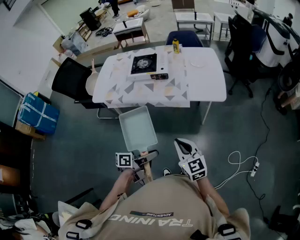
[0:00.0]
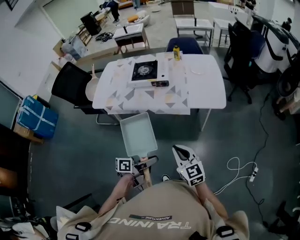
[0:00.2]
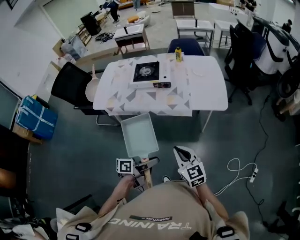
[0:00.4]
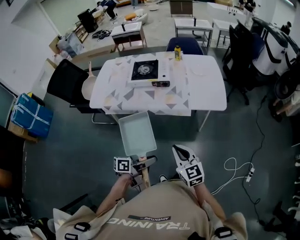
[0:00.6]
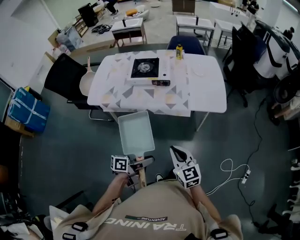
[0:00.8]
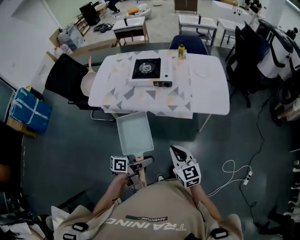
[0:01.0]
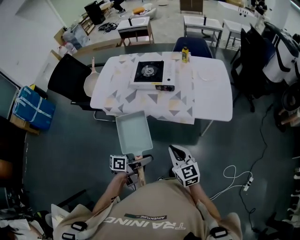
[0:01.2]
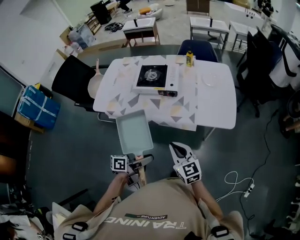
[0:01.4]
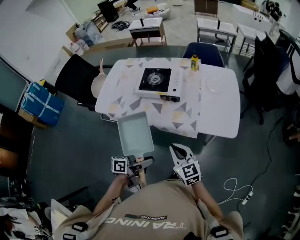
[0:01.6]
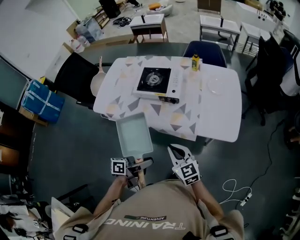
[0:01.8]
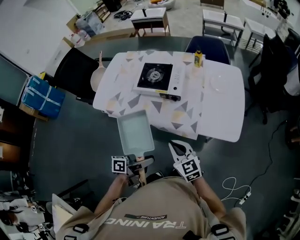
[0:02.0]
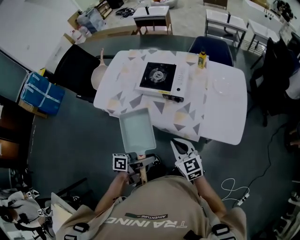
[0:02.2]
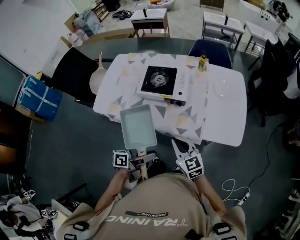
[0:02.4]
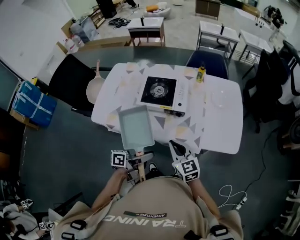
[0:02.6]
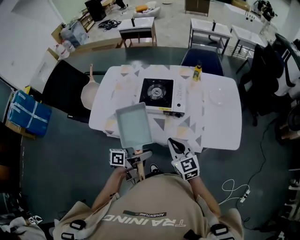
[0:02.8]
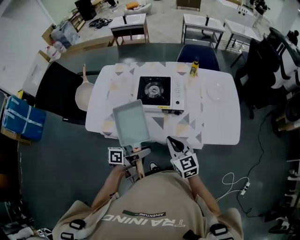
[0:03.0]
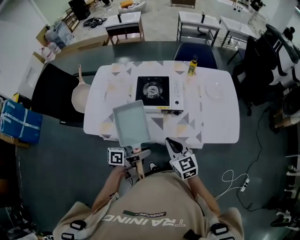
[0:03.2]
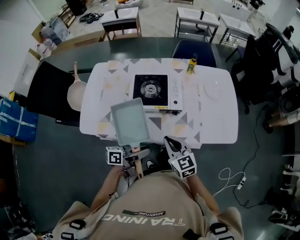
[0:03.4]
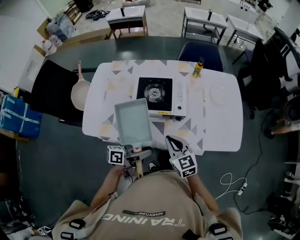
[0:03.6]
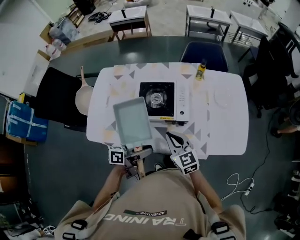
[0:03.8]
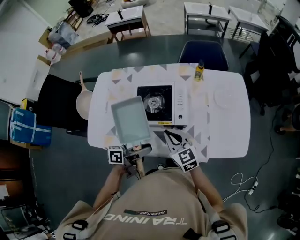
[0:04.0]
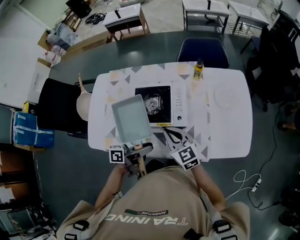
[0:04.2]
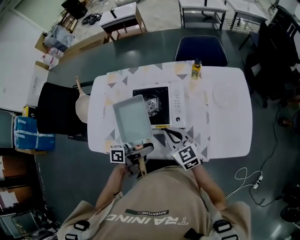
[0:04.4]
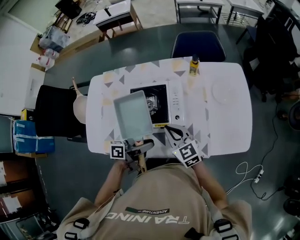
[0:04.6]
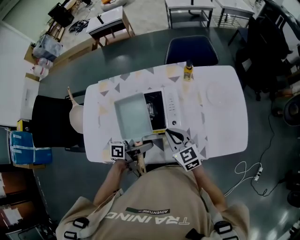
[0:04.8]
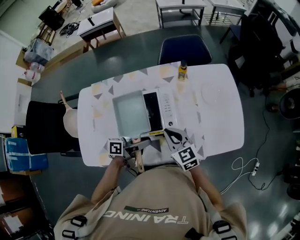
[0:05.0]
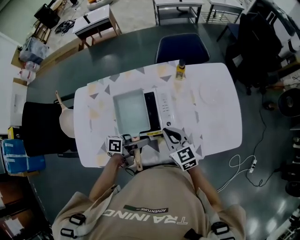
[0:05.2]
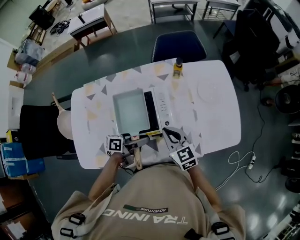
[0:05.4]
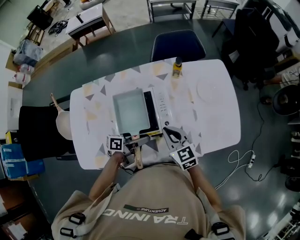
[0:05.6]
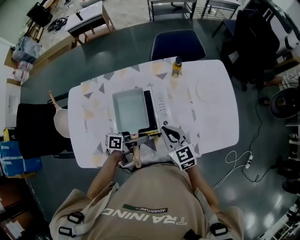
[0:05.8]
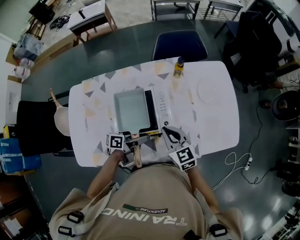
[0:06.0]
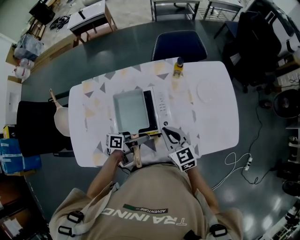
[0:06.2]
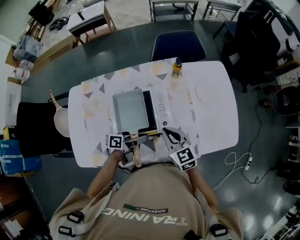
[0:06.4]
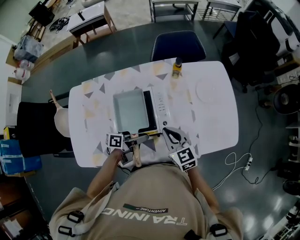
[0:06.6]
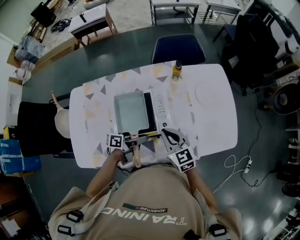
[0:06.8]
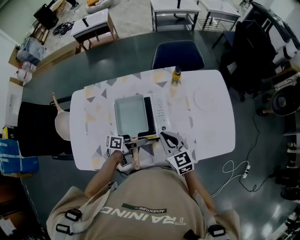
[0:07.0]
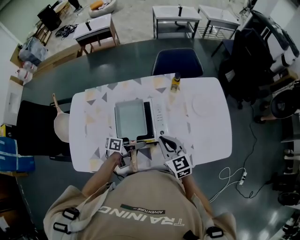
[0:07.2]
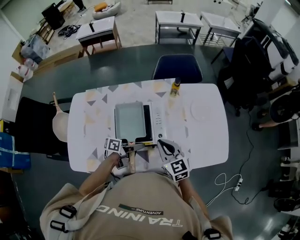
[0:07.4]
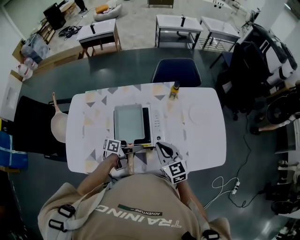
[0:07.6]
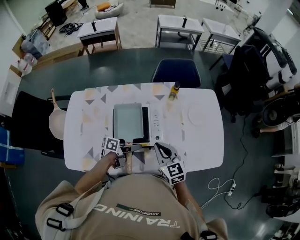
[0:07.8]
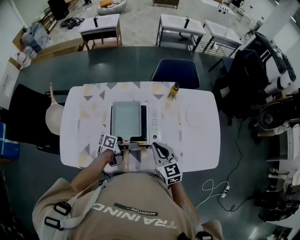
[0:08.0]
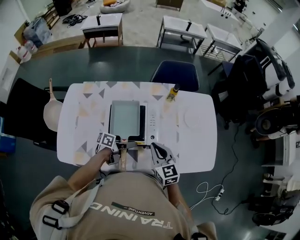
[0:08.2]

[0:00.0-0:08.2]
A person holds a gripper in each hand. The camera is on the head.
0:00.0 to 0:01.6: The right gripper moves about 20 cm.
0:01.6 to 0:03.2: The right gripper moves roughly 20 cm.
0:03.2 to 0:05.0: The right gripper moves approximately 20 cm.

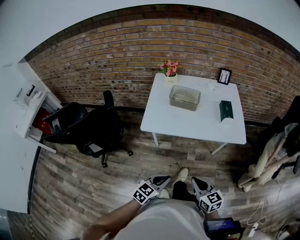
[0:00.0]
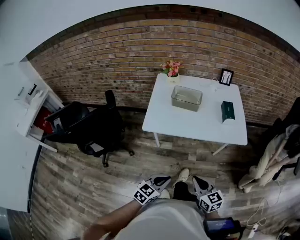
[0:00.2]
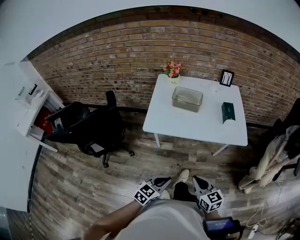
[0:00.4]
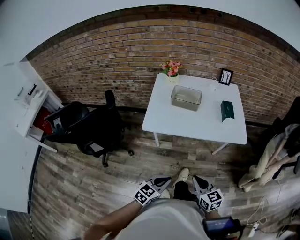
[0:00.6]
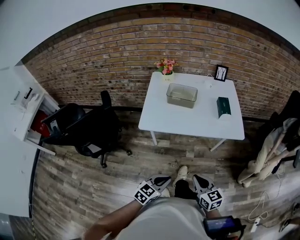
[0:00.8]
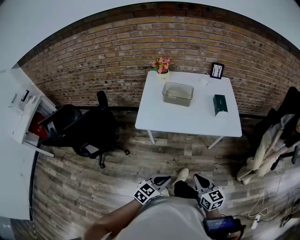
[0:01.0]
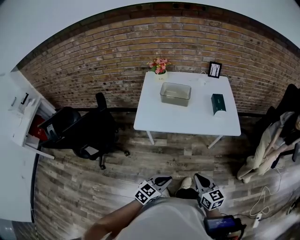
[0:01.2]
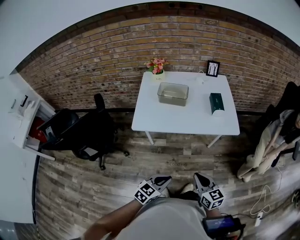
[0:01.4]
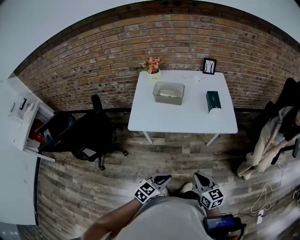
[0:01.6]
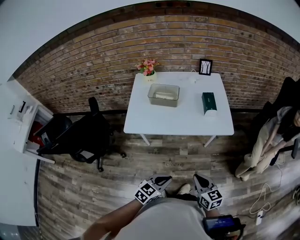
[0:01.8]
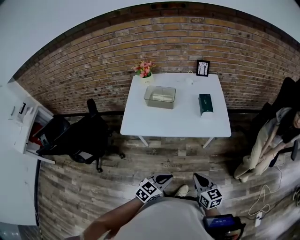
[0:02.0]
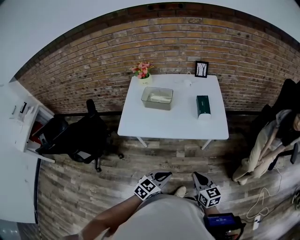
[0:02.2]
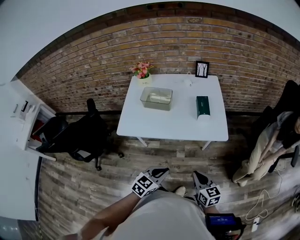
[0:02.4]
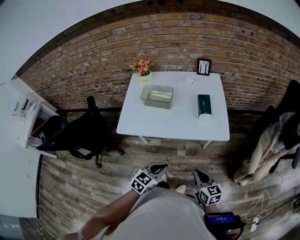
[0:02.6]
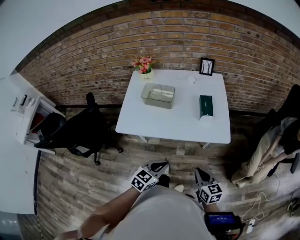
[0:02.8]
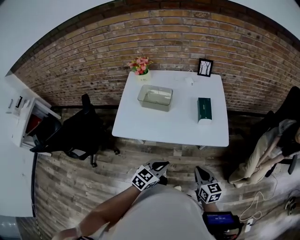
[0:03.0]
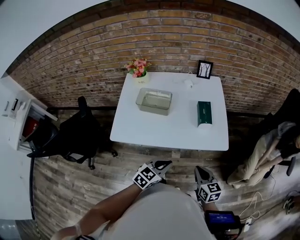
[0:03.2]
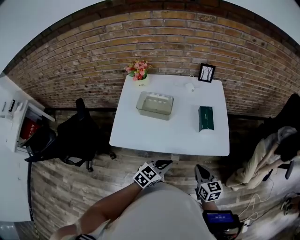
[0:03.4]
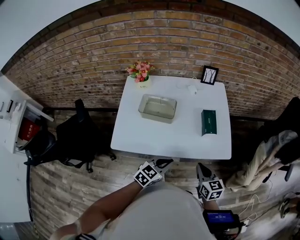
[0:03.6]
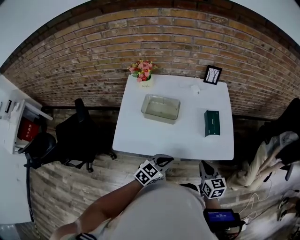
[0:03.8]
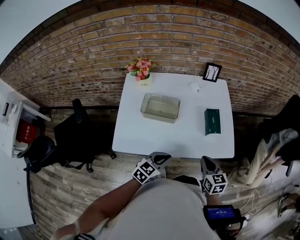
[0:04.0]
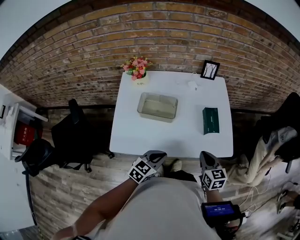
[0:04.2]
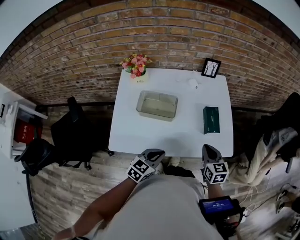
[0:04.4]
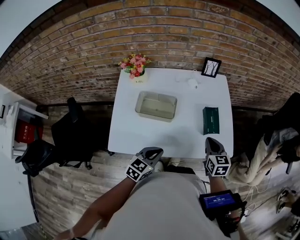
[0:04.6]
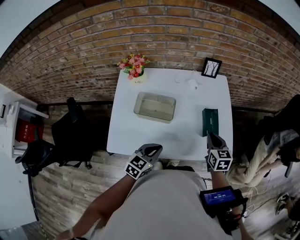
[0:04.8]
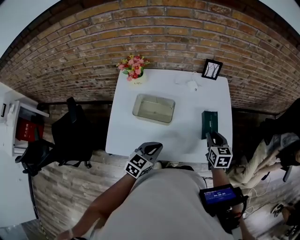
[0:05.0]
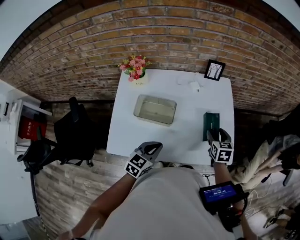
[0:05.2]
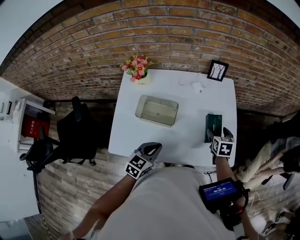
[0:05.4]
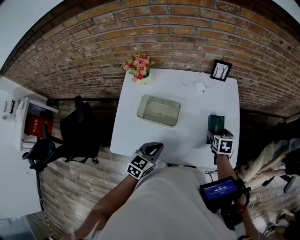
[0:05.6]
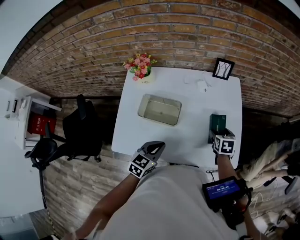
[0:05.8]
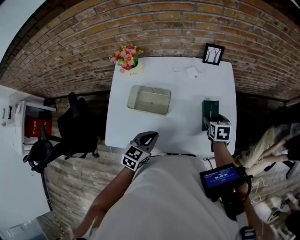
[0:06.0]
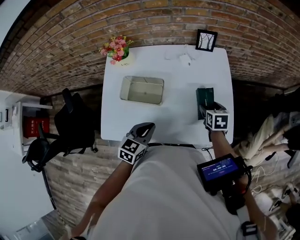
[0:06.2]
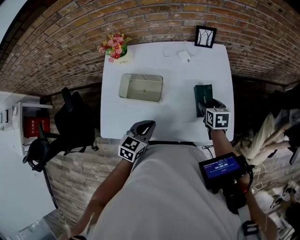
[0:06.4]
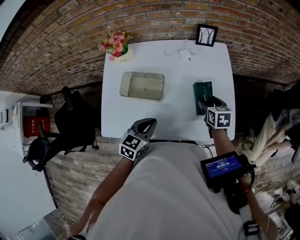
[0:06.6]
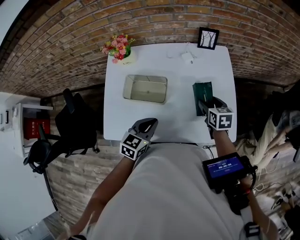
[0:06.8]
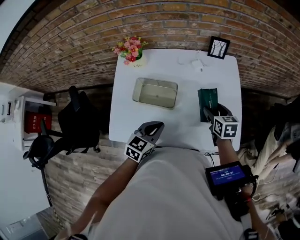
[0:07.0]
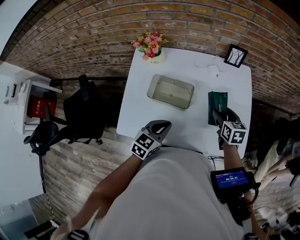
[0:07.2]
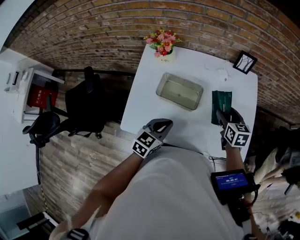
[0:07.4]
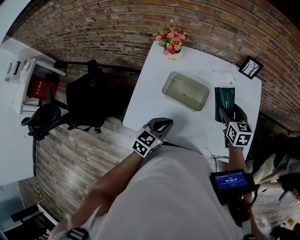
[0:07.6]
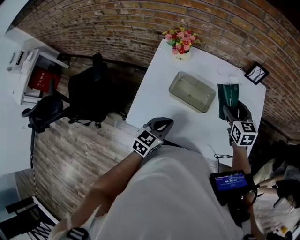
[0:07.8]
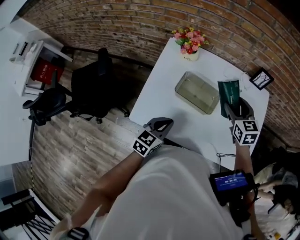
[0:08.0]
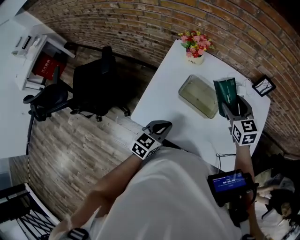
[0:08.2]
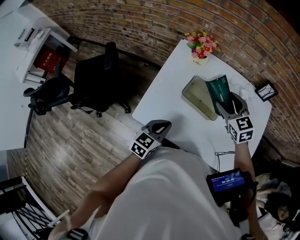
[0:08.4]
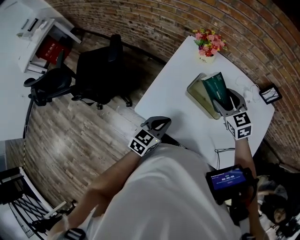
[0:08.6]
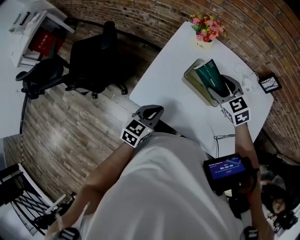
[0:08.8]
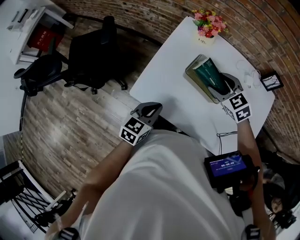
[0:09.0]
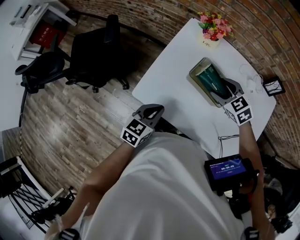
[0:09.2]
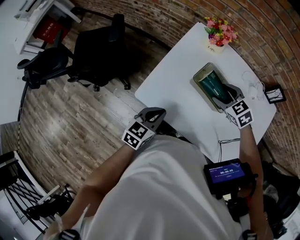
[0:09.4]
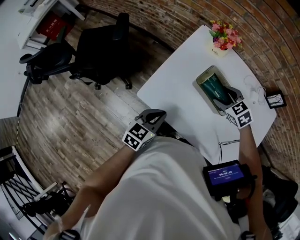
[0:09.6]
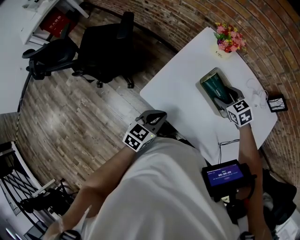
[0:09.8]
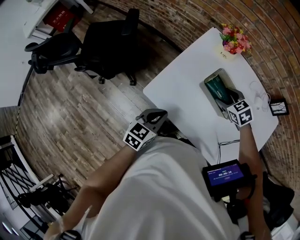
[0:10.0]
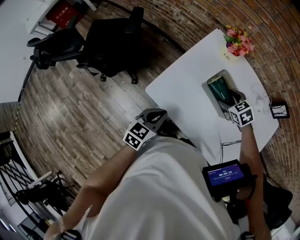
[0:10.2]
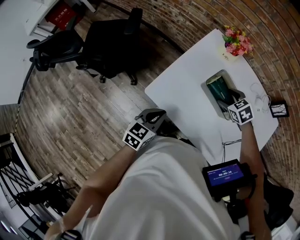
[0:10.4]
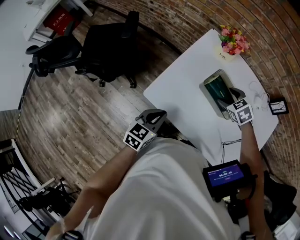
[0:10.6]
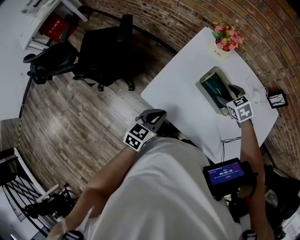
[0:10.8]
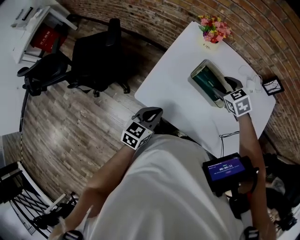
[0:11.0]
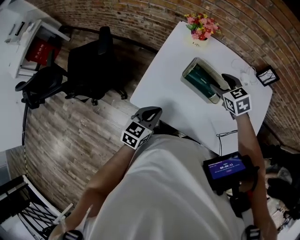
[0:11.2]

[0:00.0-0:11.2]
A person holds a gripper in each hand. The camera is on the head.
0:00.0 to 0:01.6: The two grippers go approximately 5 cm to the right.
0:01.6 to 0:03.2: The left gripper moves forward, some 20 cm, while the right gripper goes about 20 cm forward and to the right.
0:03.2 to 0:04.8: The left gripper heads to the left and forward, covering about 20 cm. The right gripper is displaced forward by some 25 cm.
0:04.8 to 0:06.4: The right gripper travels forward and downward by about 10 cm, and opens its fingers.
0:06.4 to 0:08.0: The right gripper goes some 20 cm to the left and upward, and turns by some 40 degrees; the left gripper goes approximately 15 cm to the left.
0:08.0 to 0:09.6: The left gripper moves approximately 10 cm, while the right gripper shifts by some 15 cm, and rotates approximately 50 degrees.
0:09.6 to 0:11.2: The right gripper changes its angle by approximately 20 degrees.

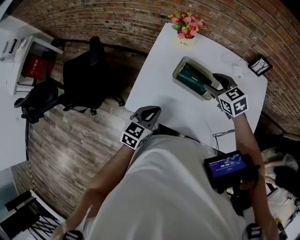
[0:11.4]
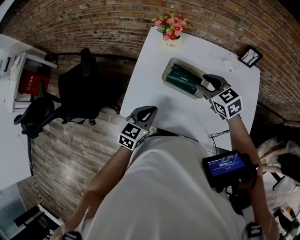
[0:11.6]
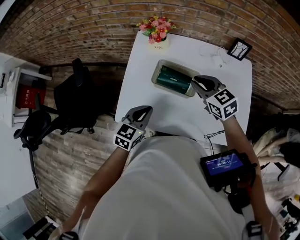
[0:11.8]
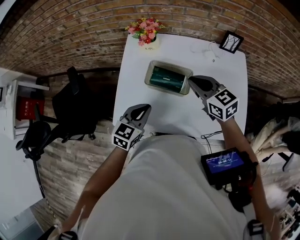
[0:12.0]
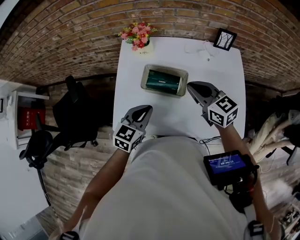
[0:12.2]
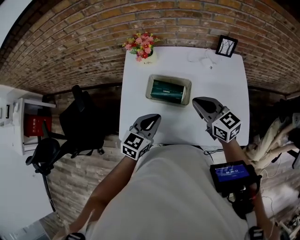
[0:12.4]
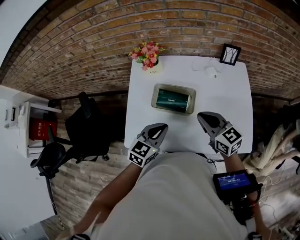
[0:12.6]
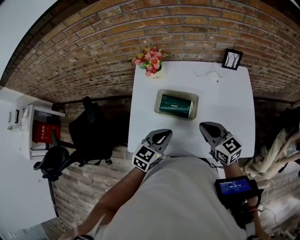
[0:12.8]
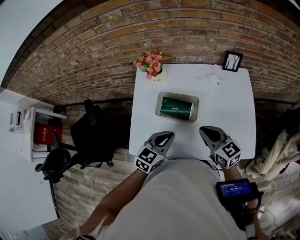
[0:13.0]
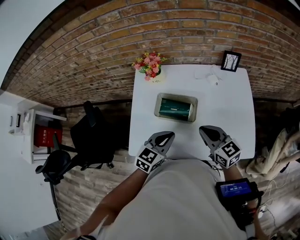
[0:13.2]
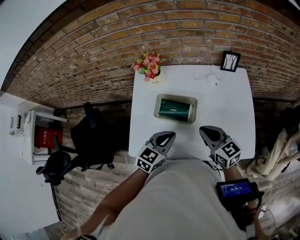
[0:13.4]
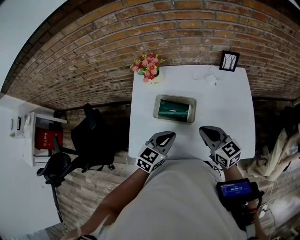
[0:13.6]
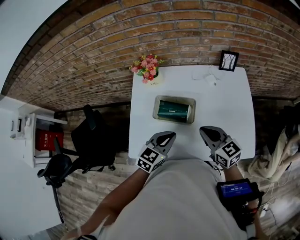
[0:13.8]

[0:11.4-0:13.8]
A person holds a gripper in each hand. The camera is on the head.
0:11.4 to 0:12.6: The left gripper heads to the right, covering some 10 cm; the right gripper moves backward and to the right, roughly 10 cm, changes its angle by about 30 degrees, and closes up.
0:12.6 to 0:13.8: The grippers move only a little.

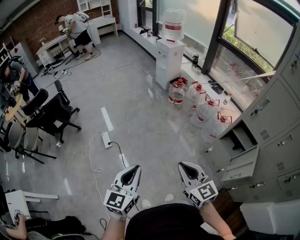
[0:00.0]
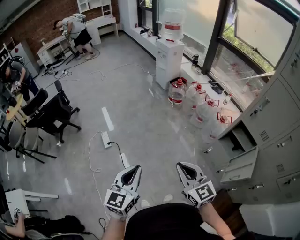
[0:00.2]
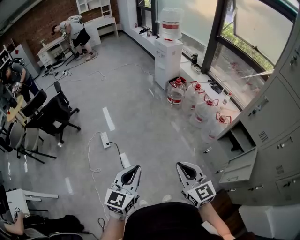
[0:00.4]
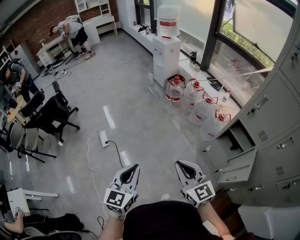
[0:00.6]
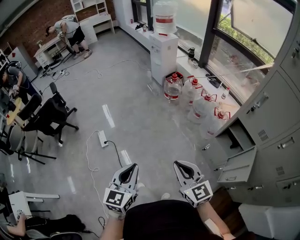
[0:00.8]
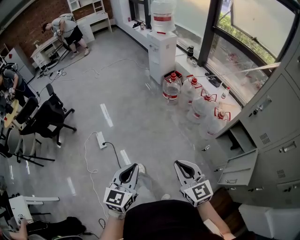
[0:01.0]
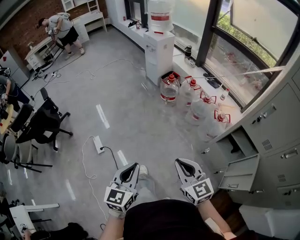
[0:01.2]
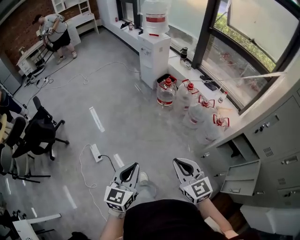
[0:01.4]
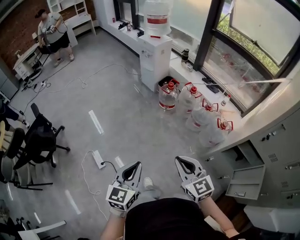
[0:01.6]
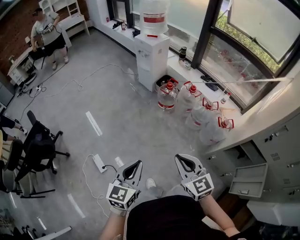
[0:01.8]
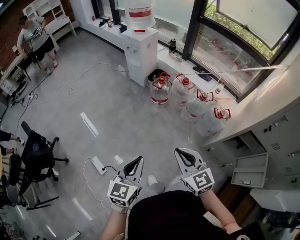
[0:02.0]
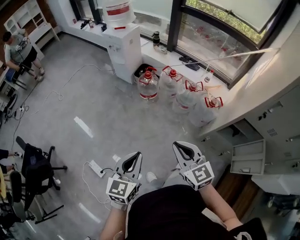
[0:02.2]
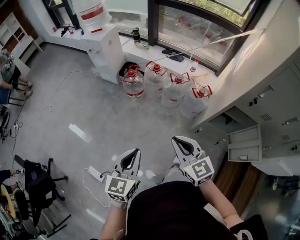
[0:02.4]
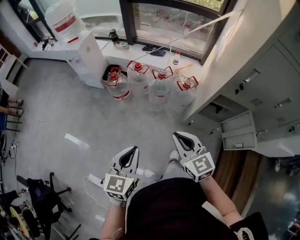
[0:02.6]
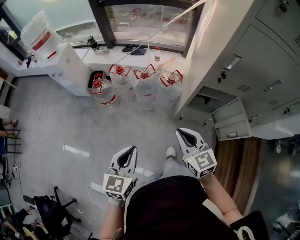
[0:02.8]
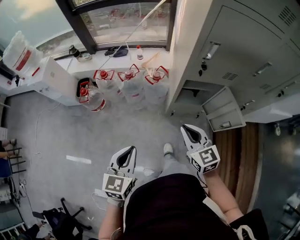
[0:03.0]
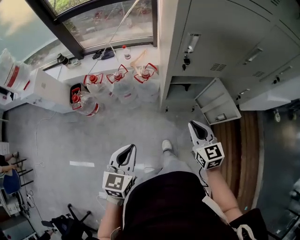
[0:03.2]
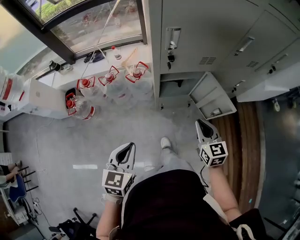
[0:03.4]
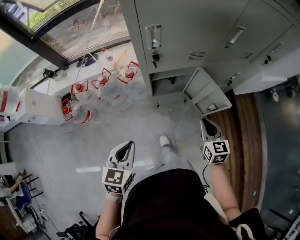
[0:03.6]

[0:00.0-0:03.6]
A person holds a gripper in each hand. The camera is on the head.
0:00.0 to 0:01.8: Both grippers travel together forward, approximately 35 cm.
0:01.8 to 0:03.6: The two grippers travel together, some 50 cm. The right gripper turns by approximately 80 degrees; the left gripper swivels about 60 degrees.
